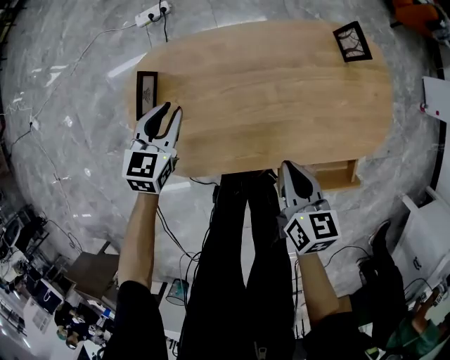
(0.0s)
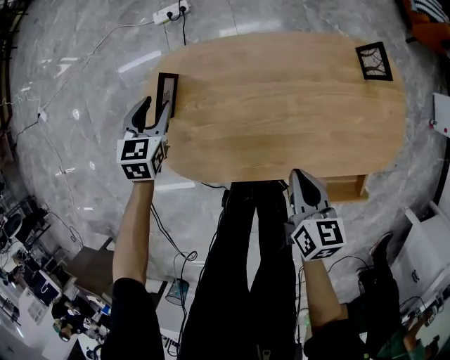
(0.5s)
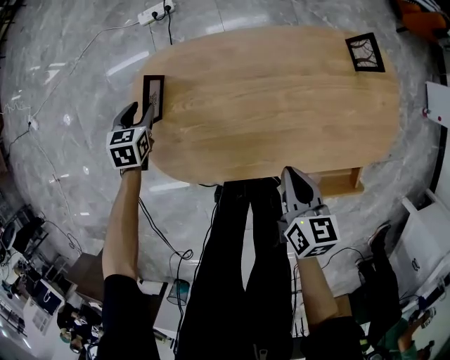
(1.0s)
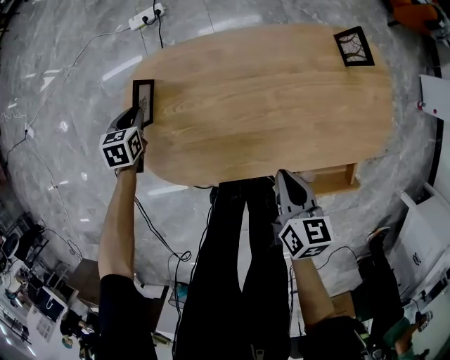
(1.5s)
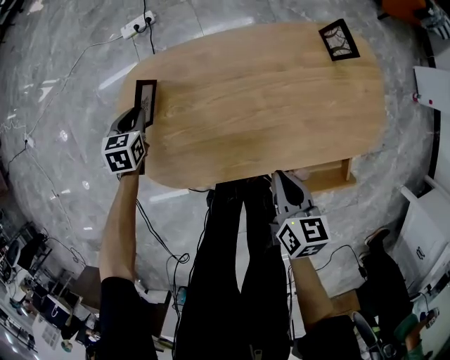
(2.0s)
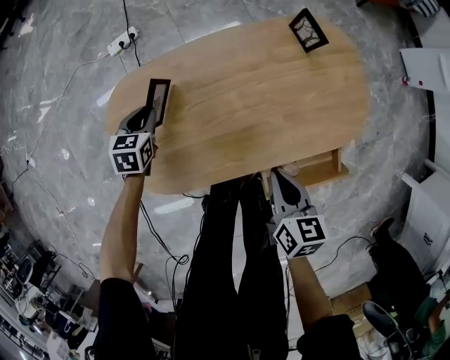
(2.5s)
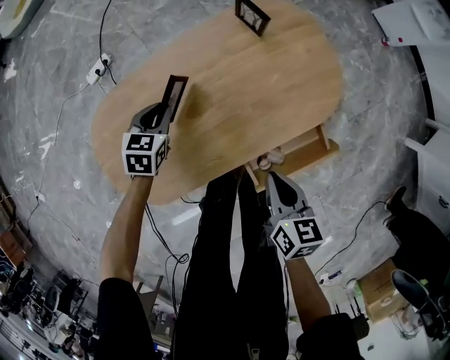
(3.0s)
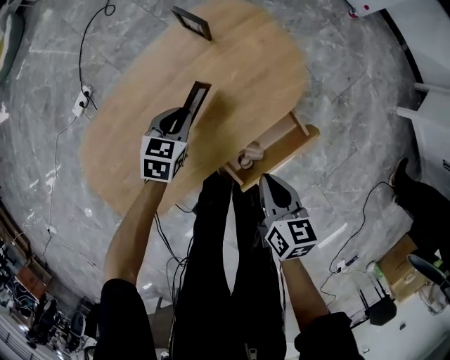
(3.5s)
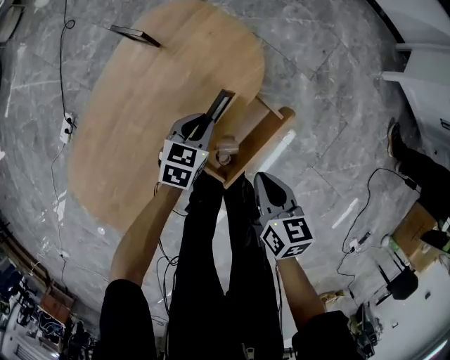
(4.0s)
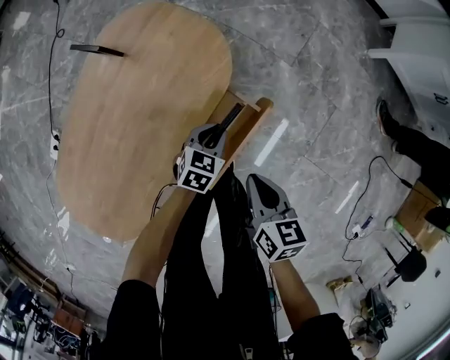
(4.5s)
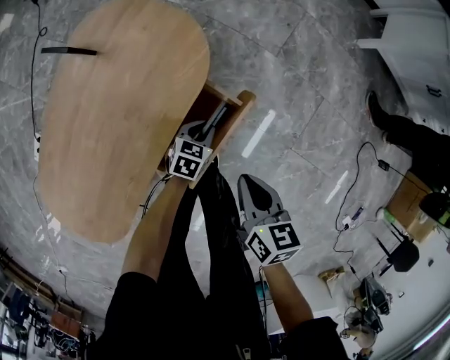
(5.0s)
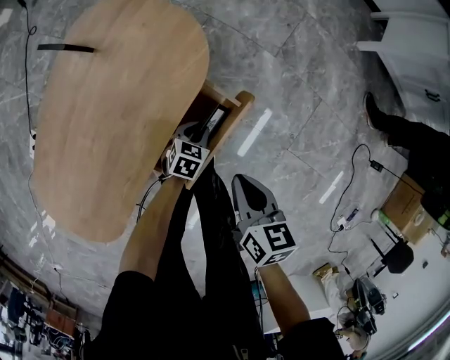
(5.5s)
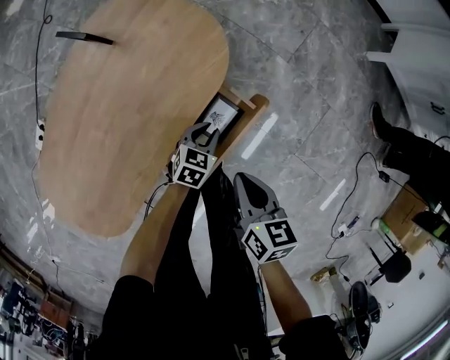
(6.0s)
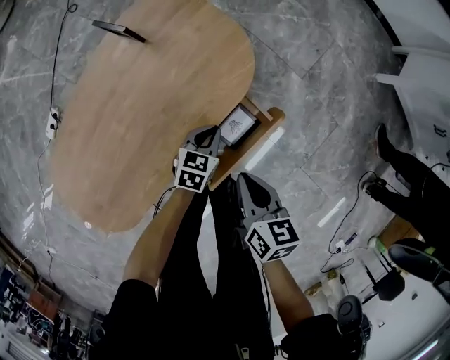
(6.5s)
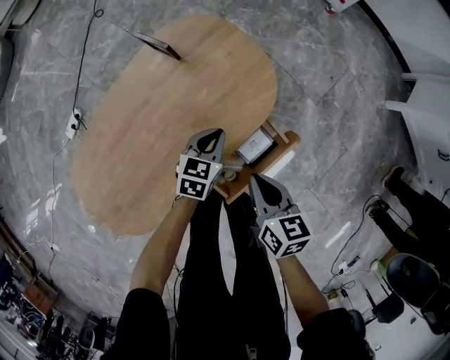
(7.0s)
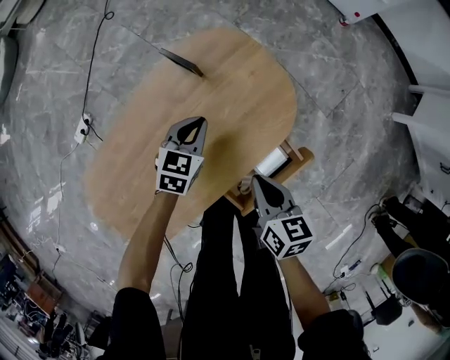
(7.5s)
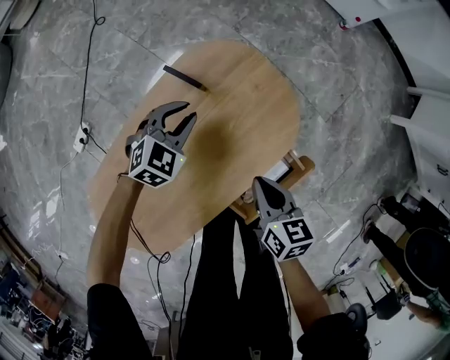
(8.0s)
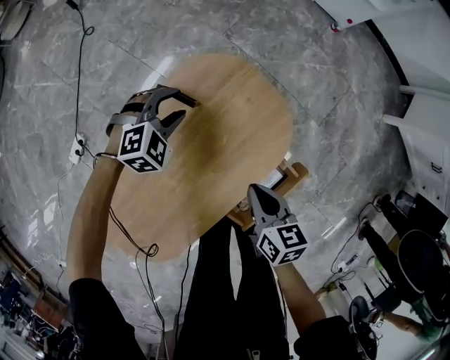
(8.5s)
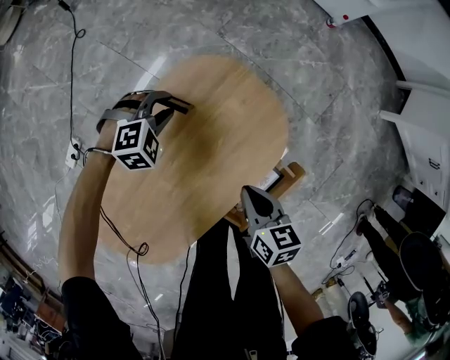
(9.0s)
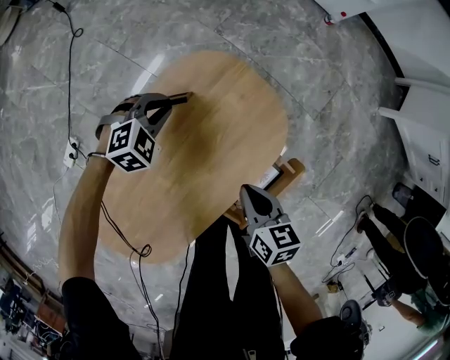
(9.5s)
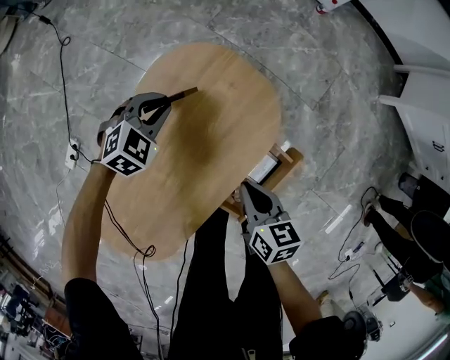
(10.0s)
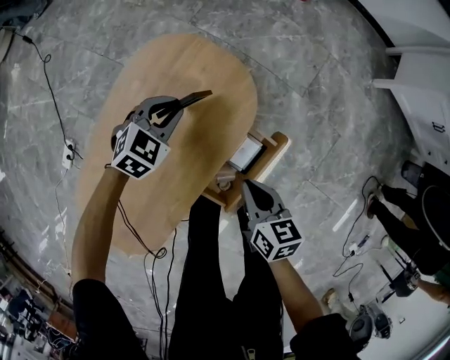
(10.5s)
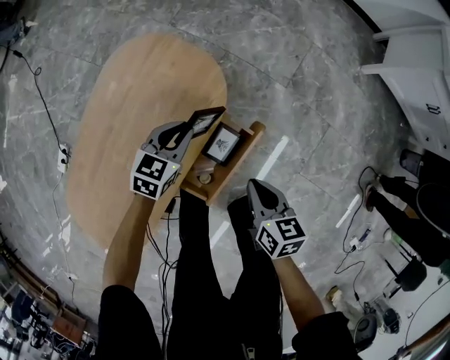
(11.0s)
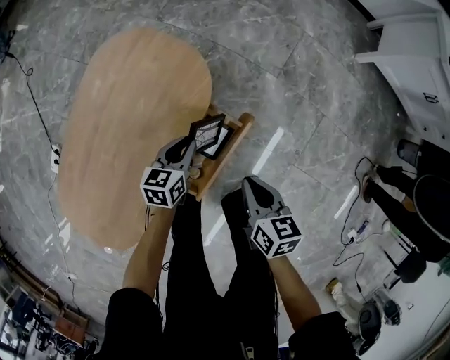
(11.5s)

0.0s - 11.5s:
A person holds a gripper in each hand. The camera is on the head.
0.0s - 2.0s: The left gripper heads to the left, downward and forward, covering some 15 cm, swivels about 20 degrees, and opens and closes again.
2.0s - 4.0s: The right gripper ends up about 25 cm from where it was, and swivels about 40 degrees. The left gripper moves about 60 cm, and swivels approximately 60 degrees.
4.0s - 6.0s: The left gripper is displaced to the right and downward by roughly 20 cm.
6.0s - 7.5s: The right gripper goes approximately 20 cm to the left and forward, while the left gripper heads to the left, forward and upward, covering approximately 35 cm, and changes its angle by about 20 degrees.
7.5s - 9.5s: The right gripper goes some 5 cm forward, while the left gripper shifts some 15 cm forward and to the left, twists about 50 degrees clockwise, seen from behind, and opens, then closes once more.
9.5s - 11.5s: Both grippers travel together to the right and backward, roughly 30 cm. The left gripper twists some 60 degrees counterclockwise, seen from behind.

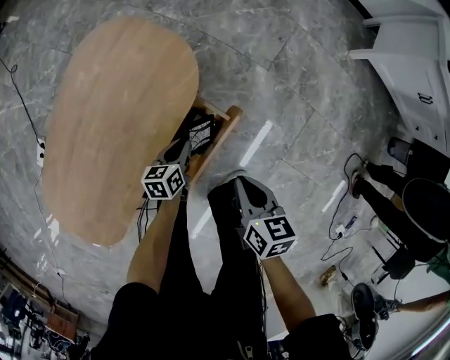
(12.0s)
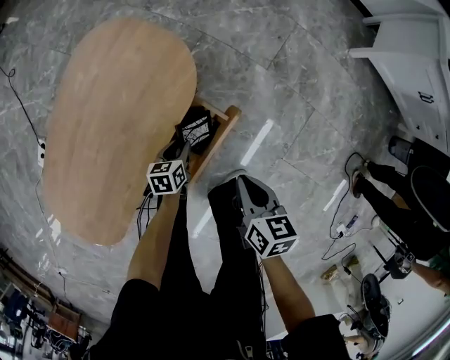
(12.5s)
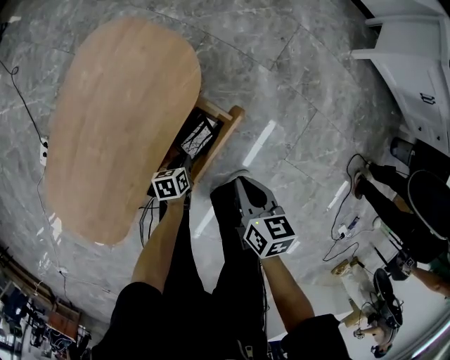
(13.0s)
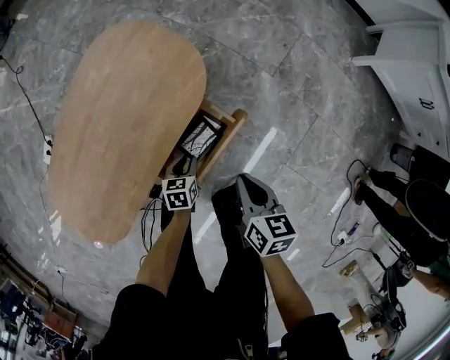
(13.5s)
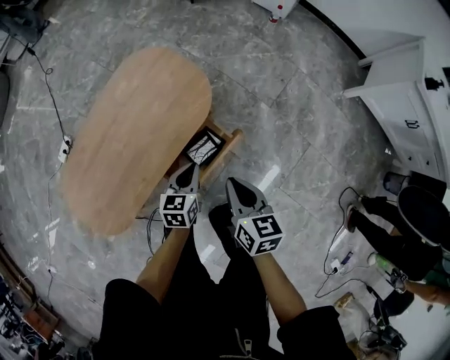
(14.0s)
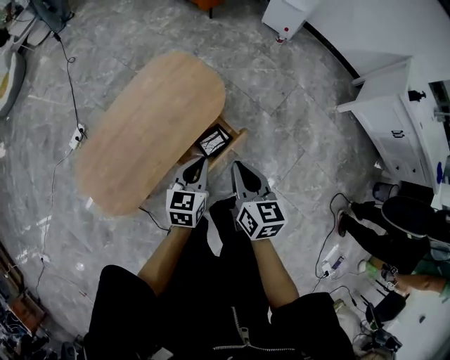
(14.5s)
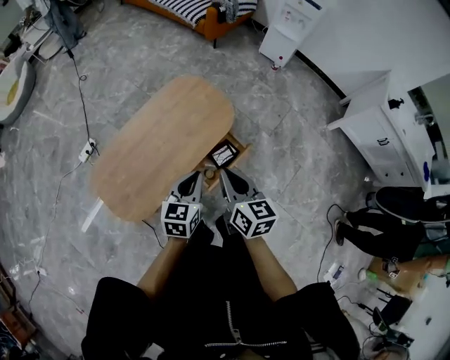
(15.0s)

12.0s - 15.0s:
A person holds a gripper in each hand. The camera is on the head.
12.0s - 13.5s: The left gripper moves backward, roughly 5 cm.
13.5s - 15.0s: The right gripper travels upward and to the left by about 35 cm, and rotates some 30 degrees. Meanwhile the left gripper goes about 50 cm upward, points its fingers roughly 30 degrees further upward, and closes.

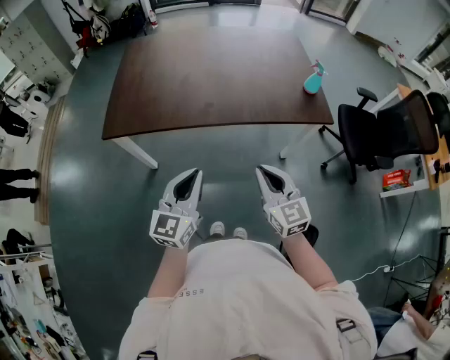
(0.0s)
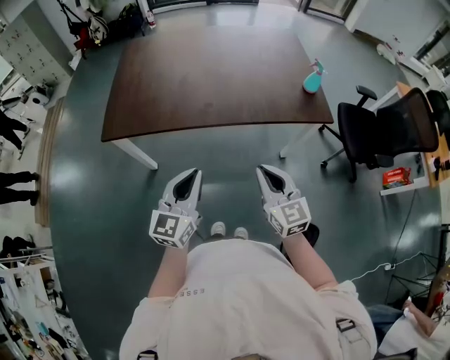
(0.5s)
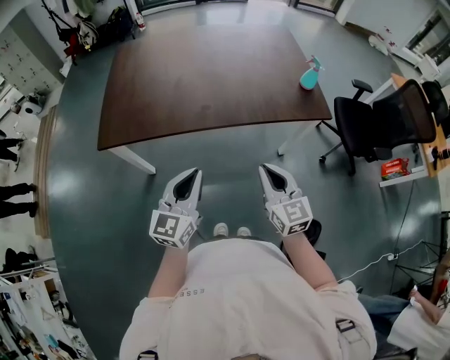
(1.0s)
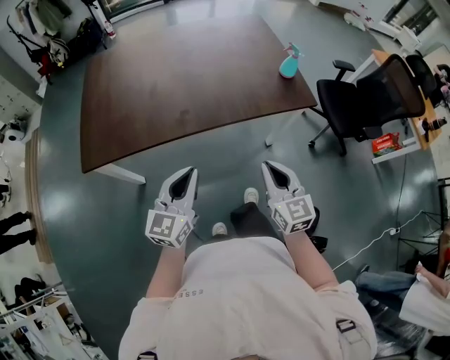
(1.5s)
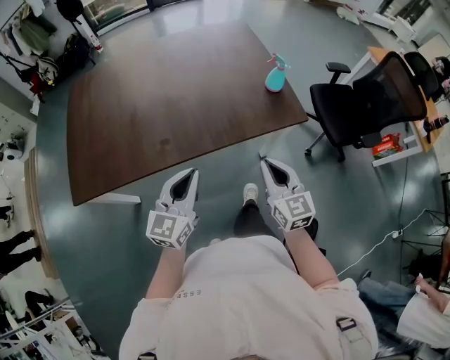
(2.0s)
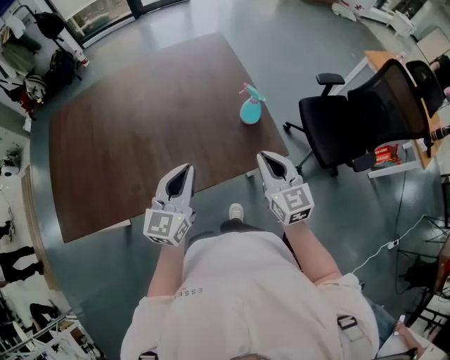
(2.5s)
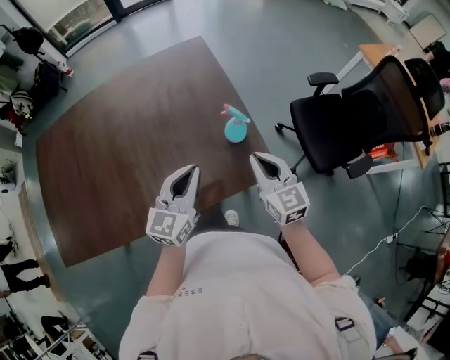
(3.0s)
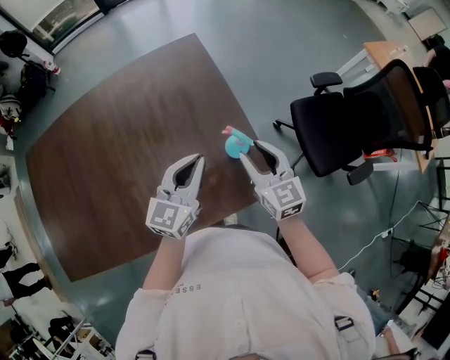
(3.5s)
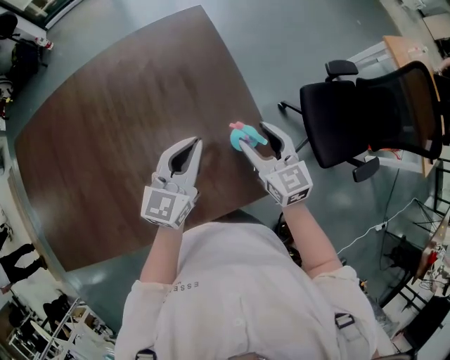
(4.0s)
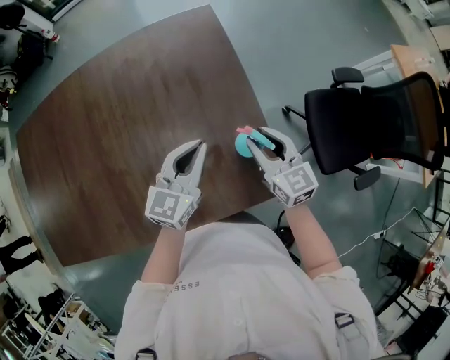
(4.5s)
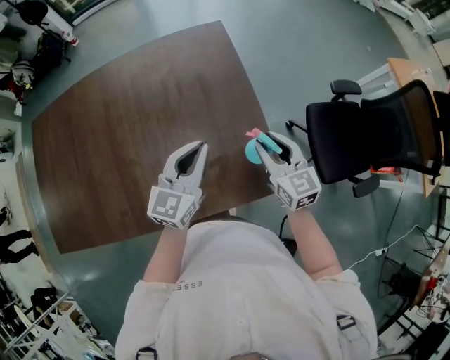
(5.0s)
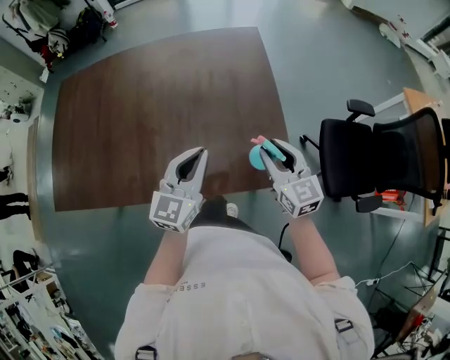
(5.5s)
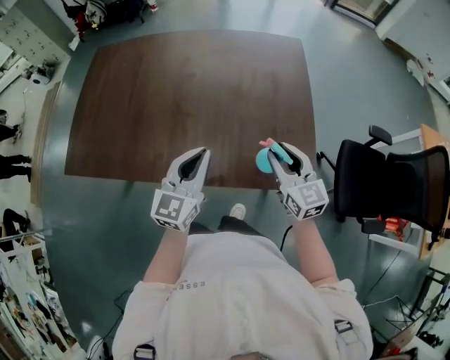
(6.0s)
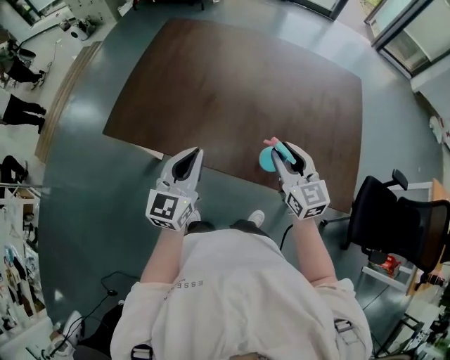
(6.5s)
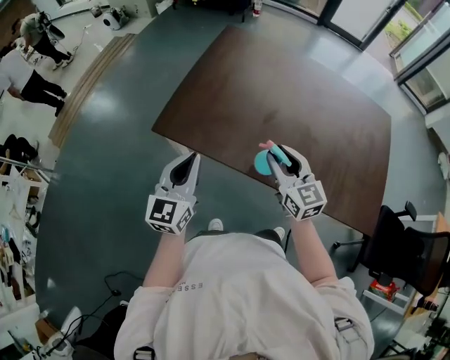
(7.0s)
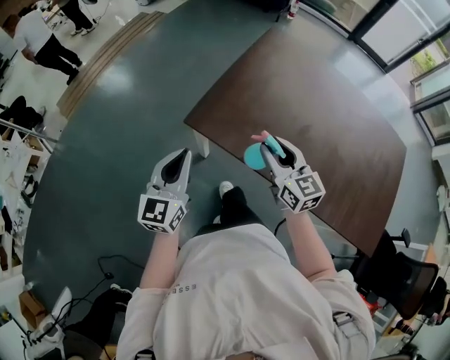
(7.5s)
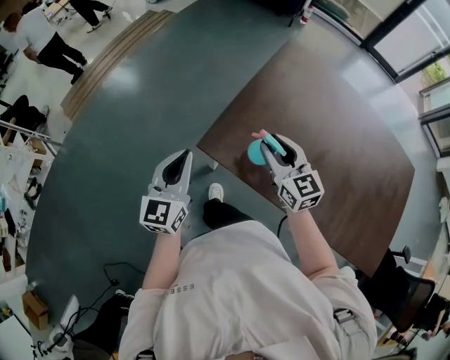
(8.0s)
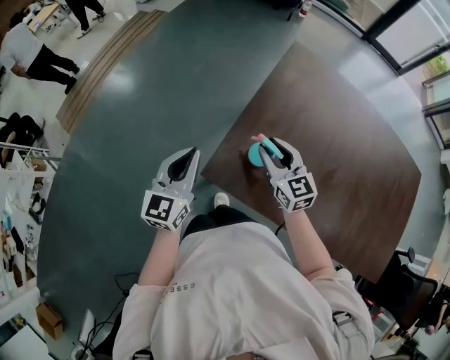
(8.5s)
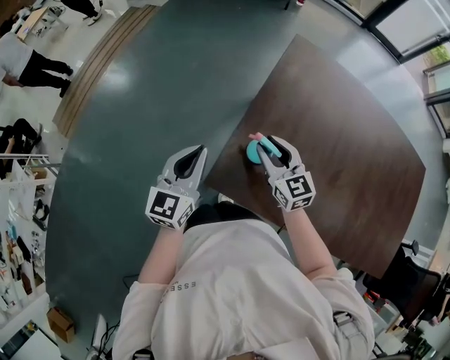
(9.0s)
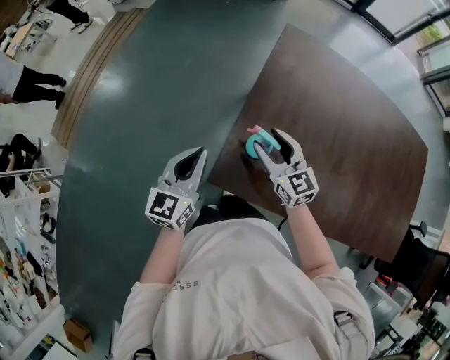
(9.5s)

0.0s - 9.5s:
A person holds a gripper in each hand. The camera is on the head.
0.0s - 2.0s: Both grippers move forward and to the right, roughly 20 cm.
2.0s - 4.0s: The two grippers travel together, forward, roughly 40 cm. The right gripper opens.
4.0s - 5.5s: The right gripper is displaced backward and upward by about 10 cm, and closes, while the left gripper travels backward and to the left by about 15 cm.
5.5s - 7.5s: Both grippers are carried some 70 cm. The left gripper swivels some 50 degrees, while the right gripper rotates about 40 degrees.
7.5s - 9.5s: The right gripper travels forward and downward by approximately 25 cm, and opens. Meanwhile the left gripper is displaced forward by about 25 cm.

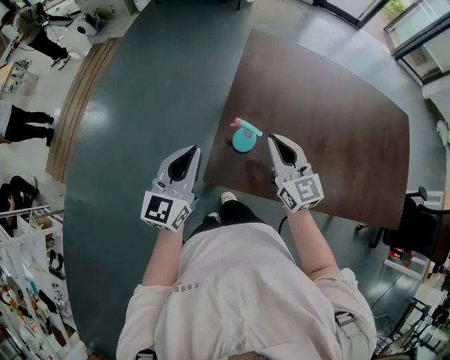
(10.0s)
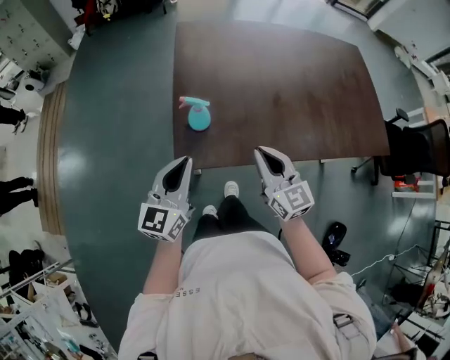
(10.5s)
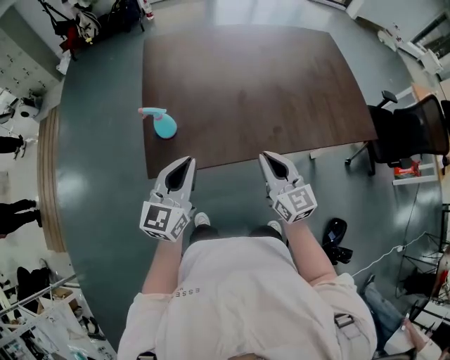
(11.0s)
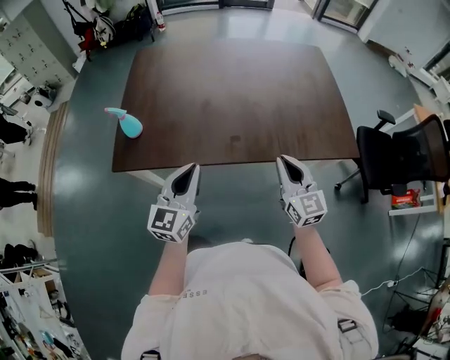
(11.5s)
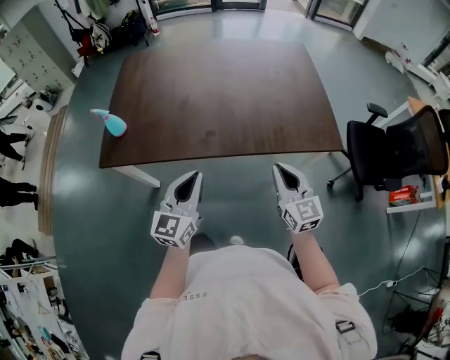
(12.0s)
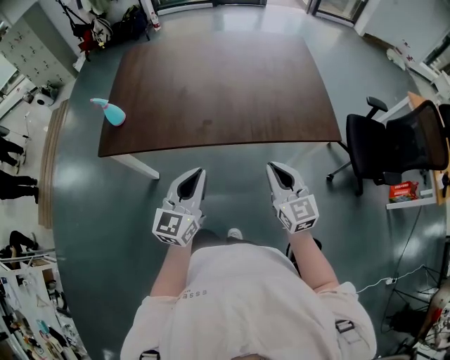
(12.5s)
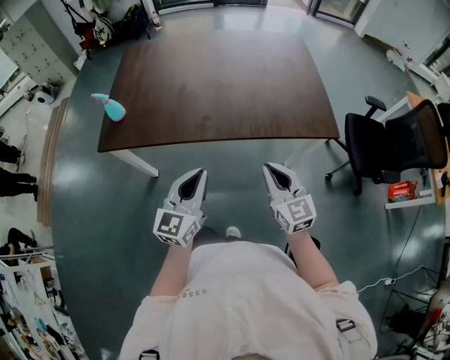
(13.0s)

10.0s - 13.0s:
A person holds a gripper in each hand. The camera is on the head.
10.0s - 11.5s: The two grippers travel together, to the right, approximately 50 cm. The right gripper changes its angle by approximately 20 degrees.
11.5s - 13.0s: The left gripper heads to the right and backward, covering roughly 15 cm, while the right gripper heads backward and to the right, covering some 15 cm.
